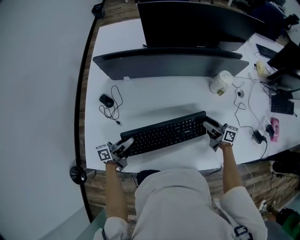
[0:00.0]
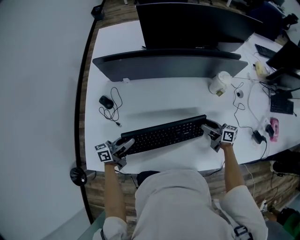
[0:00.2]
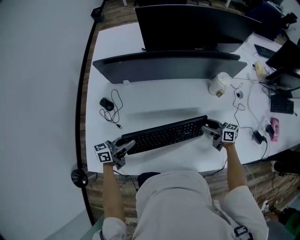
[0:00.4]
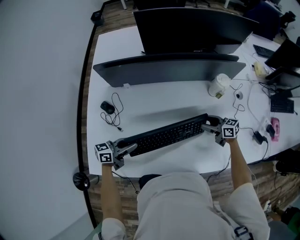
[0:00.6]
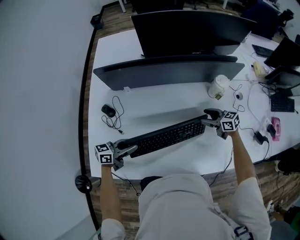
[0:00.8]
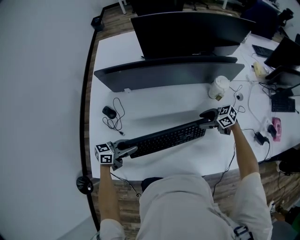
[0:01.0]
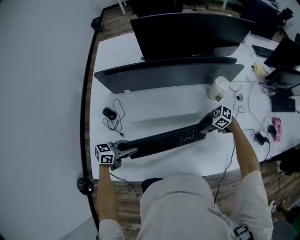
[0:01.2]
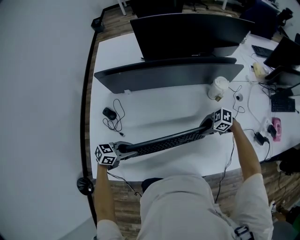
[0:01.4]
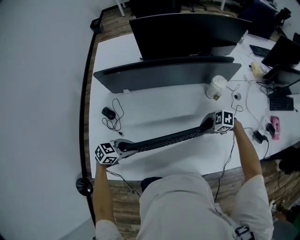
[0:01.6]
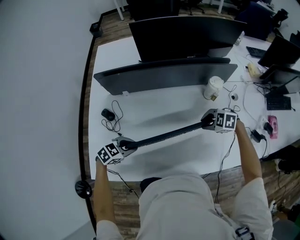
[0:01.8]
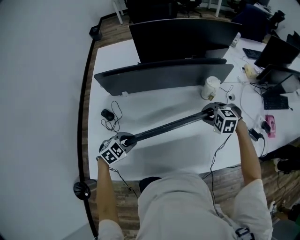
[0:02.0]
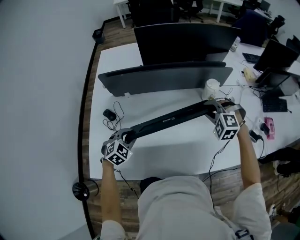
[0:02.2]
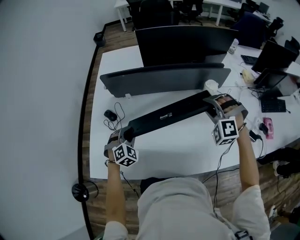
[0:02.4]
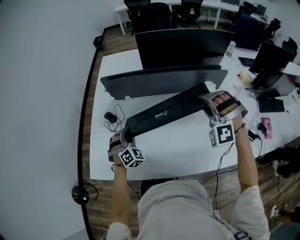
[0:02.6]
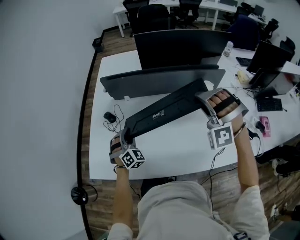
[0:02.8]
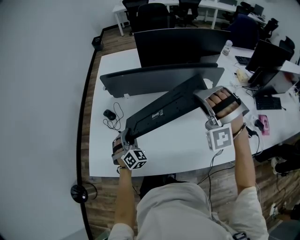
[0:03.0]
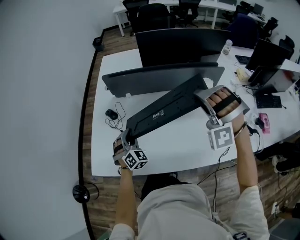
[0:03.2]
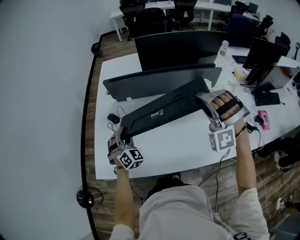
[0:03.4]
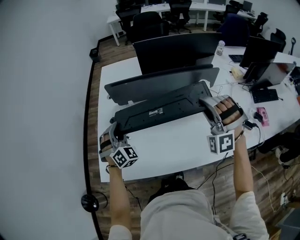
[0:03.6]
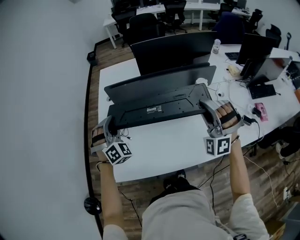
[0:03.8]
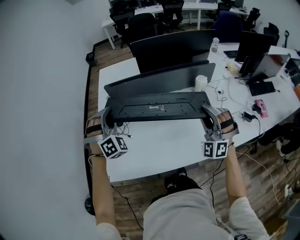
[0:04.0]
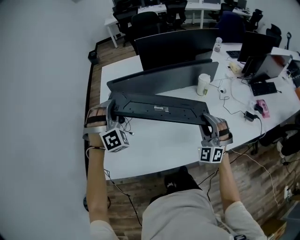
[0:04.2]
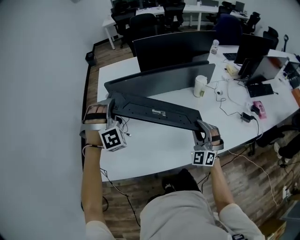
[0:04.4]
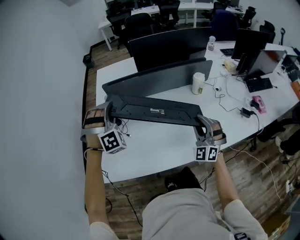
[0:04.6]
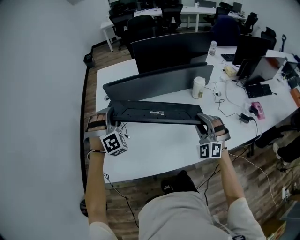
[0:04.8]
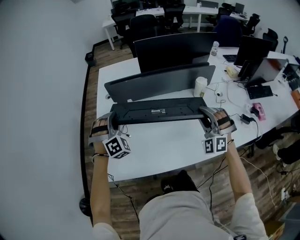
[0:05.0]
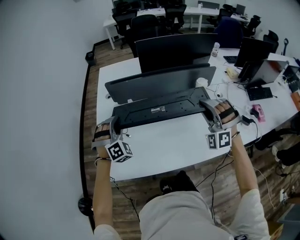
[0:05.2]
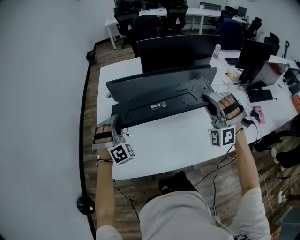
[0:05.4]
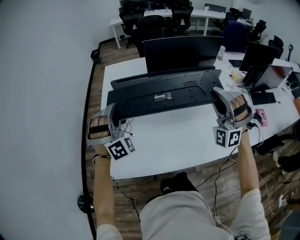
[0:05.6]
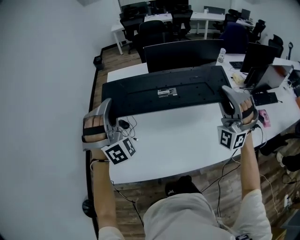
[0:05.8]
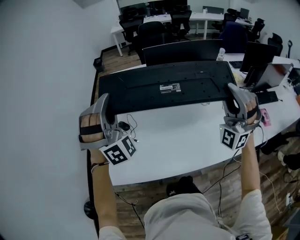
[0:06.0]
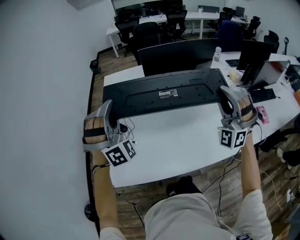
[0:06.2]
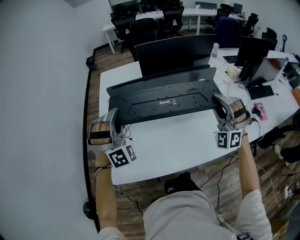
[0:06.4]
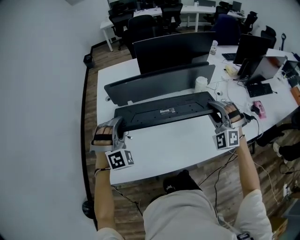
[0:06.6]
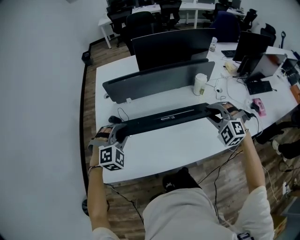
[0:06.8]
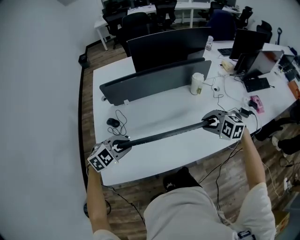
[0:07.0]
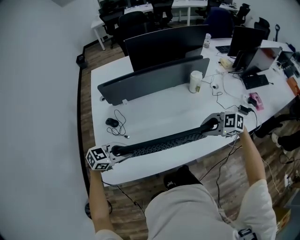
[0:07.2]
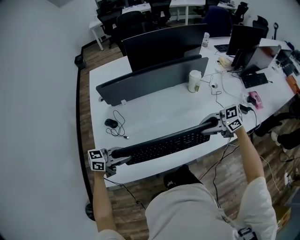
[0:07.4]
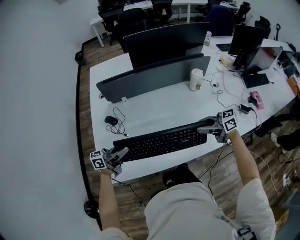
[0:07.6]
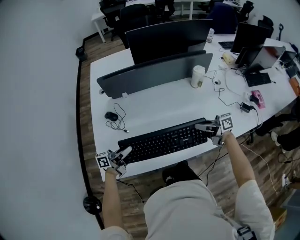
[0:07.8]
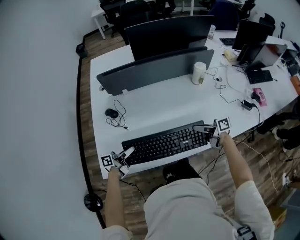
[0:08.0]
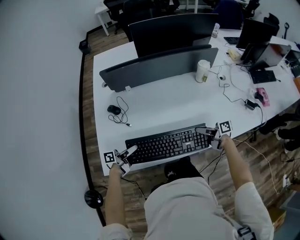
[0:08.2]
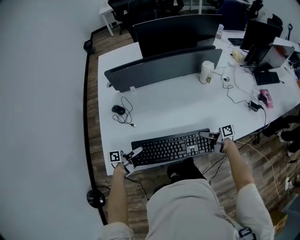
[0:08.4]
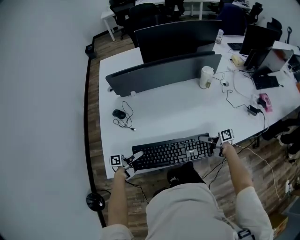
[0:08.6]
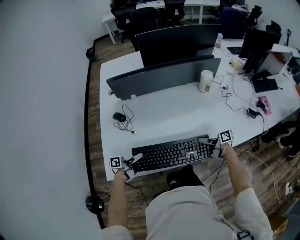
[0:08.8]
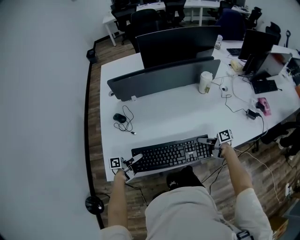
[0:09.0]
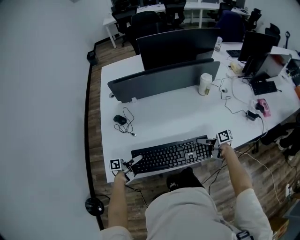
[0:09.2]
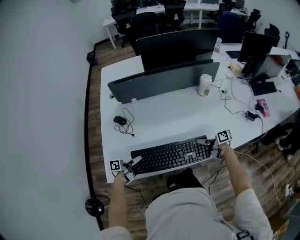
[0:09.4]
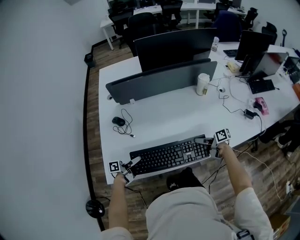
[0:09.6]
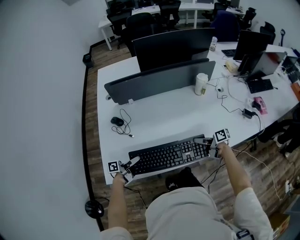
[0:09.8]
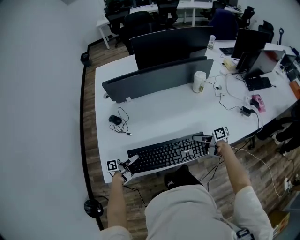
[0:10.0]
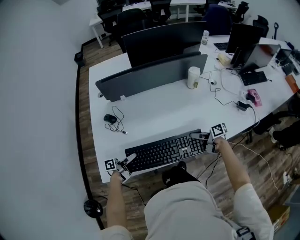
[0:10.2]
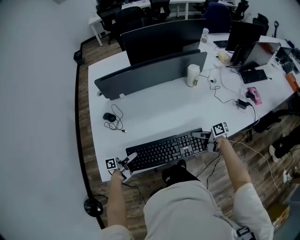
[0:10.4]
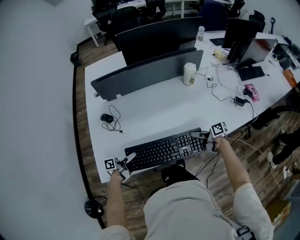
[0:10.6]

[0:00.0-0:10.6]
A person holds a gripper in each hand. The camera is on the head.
0:00.0 to 0:01.6: The right gripper tips its fingers downward by some 50 degrees, and closes up. Meanwhile the left gripper points its fingers about 30 degrees further downward.
0:01.6 to 0:03.0: The left gripper moves upward, about 10 cm, and swivels approximately 80 degrees. The right gripper goes approximately 35 cm upward, and angles its fingers upward, by roughly 30 degrees.
0:03.0 to 0:04.6: The right gripper travels backward and downward by some 15 cm, and rotates around the line of its fingers by some 50 degrees, clockwise from behind; the left gripper shifts roughly 20 cm upward, and rotates around the line of its fingers by roughly 40 degrees, clockwise from behind.
0:04.6 to 0:06.0: The left gripper shifts about 15 cm upward, and changes its angle by about 30 degrees. Meanwhile the right gripper travels upward by some 25 cm, and rotates some 40 degrees.
0:06.0 to 0:07.6: Both grippers travel together downward, about 35 cm. The right gripper tilts its fingers roughly 30 degrees downward; the left gripper rotates around the line of its fingers by about 120 degrees, counterclockwise from behind.
0:07.6 to 0:09.0: The grippers both shift downward by approximately 15 cm. The right gripper rolls clockwise, seen from behind, by roughly 40 degrees; the left gripper turns by approximately 40 degrees.
0:09.0 to 0:10.6: The grippers move only a little.

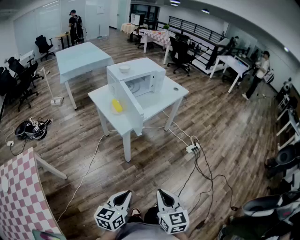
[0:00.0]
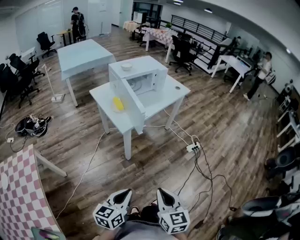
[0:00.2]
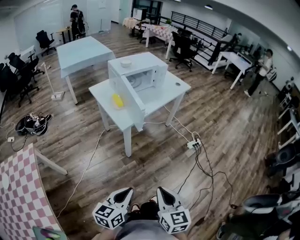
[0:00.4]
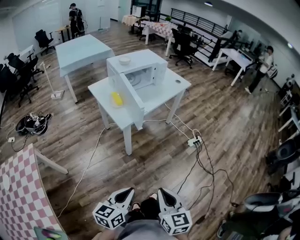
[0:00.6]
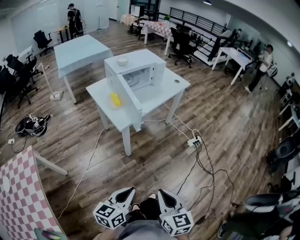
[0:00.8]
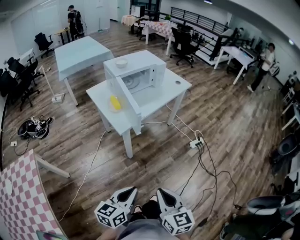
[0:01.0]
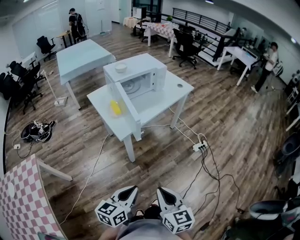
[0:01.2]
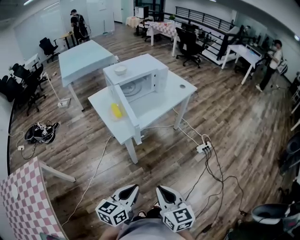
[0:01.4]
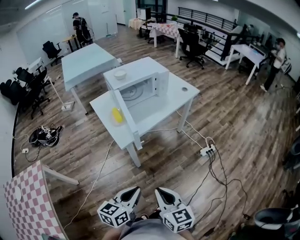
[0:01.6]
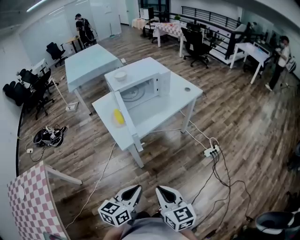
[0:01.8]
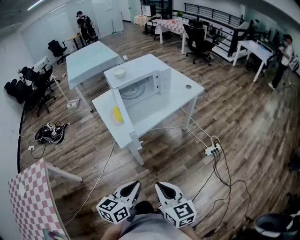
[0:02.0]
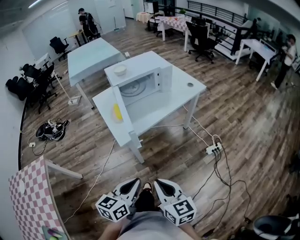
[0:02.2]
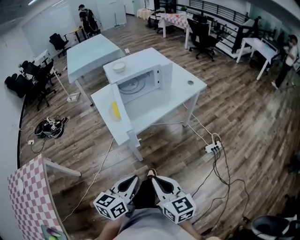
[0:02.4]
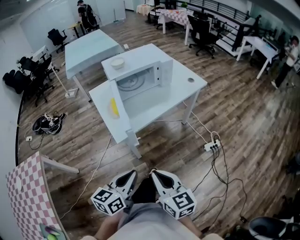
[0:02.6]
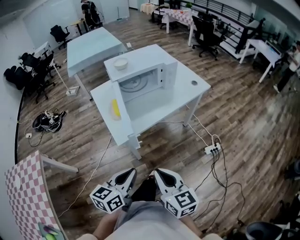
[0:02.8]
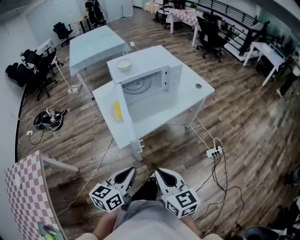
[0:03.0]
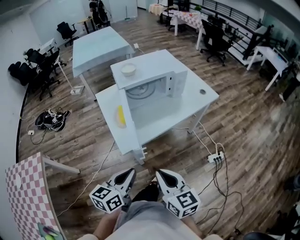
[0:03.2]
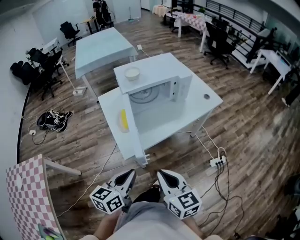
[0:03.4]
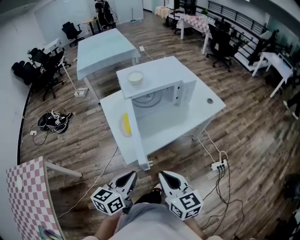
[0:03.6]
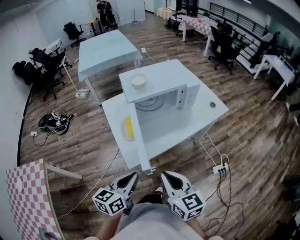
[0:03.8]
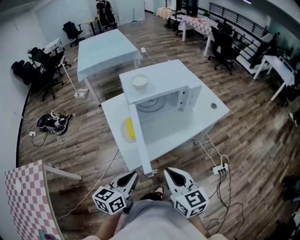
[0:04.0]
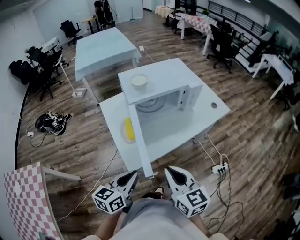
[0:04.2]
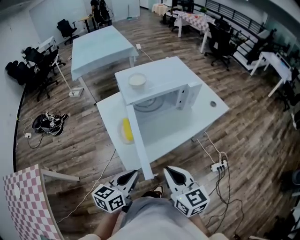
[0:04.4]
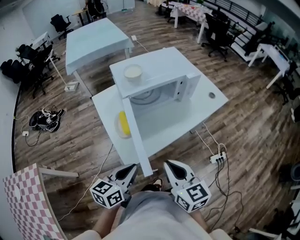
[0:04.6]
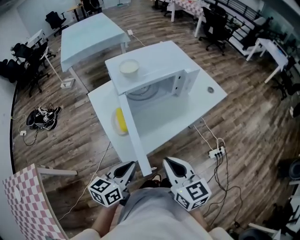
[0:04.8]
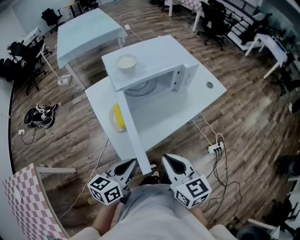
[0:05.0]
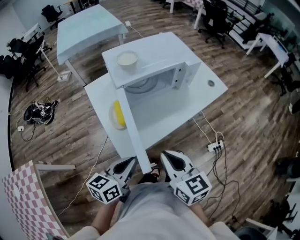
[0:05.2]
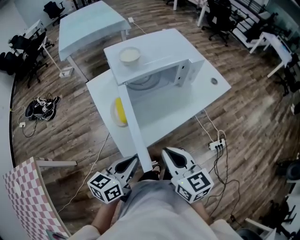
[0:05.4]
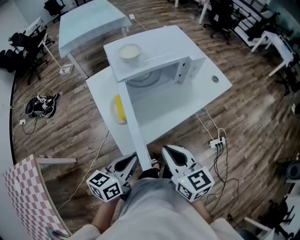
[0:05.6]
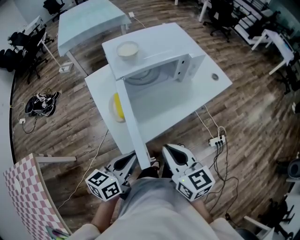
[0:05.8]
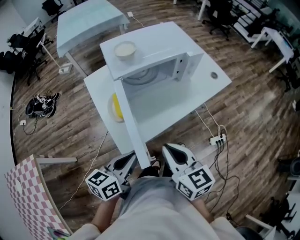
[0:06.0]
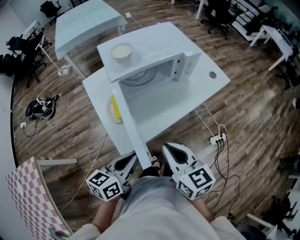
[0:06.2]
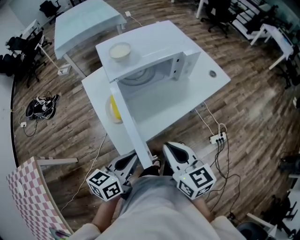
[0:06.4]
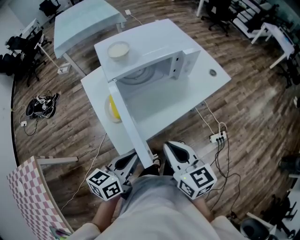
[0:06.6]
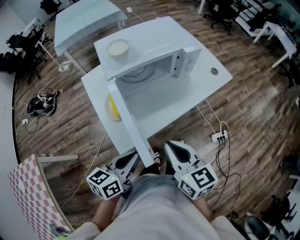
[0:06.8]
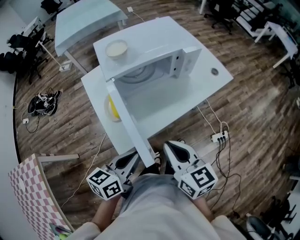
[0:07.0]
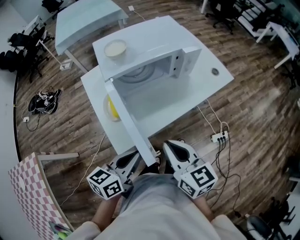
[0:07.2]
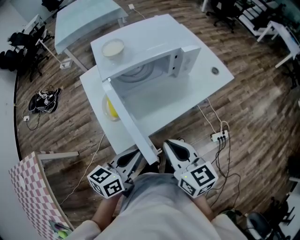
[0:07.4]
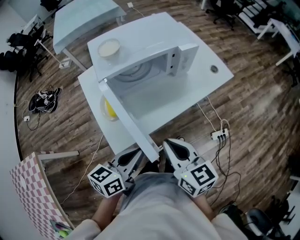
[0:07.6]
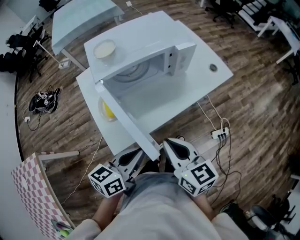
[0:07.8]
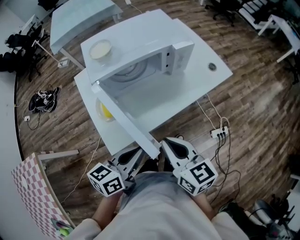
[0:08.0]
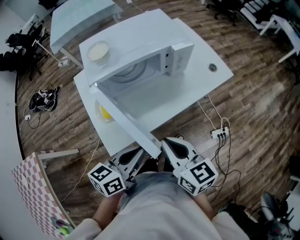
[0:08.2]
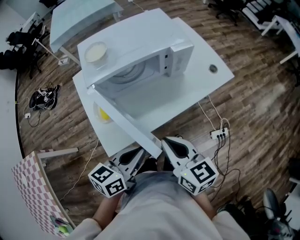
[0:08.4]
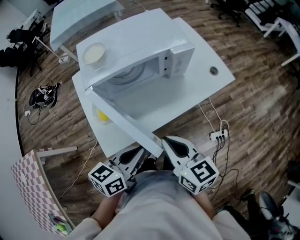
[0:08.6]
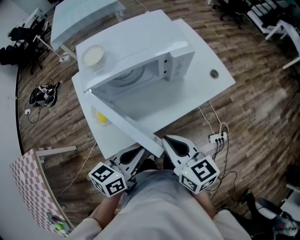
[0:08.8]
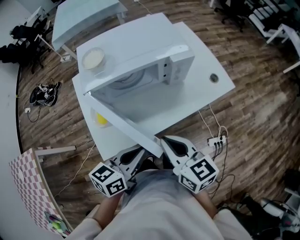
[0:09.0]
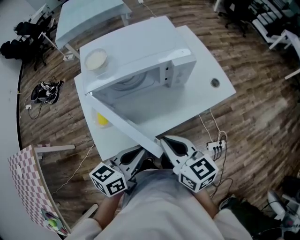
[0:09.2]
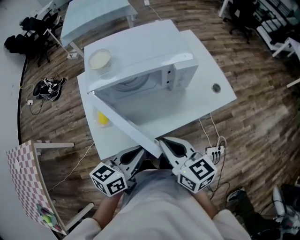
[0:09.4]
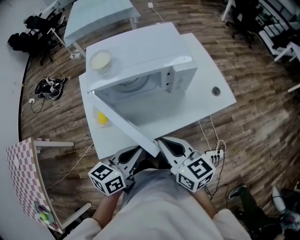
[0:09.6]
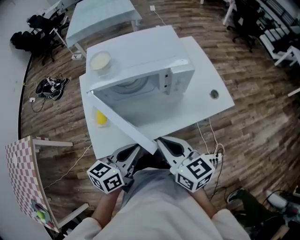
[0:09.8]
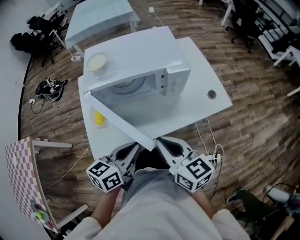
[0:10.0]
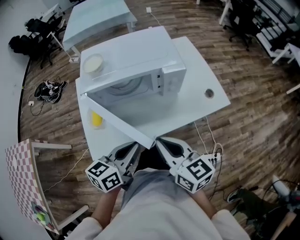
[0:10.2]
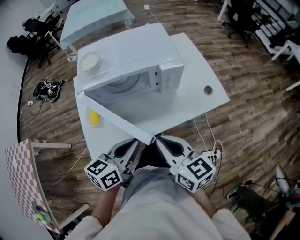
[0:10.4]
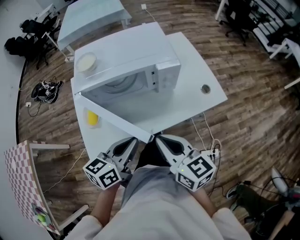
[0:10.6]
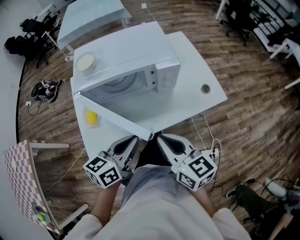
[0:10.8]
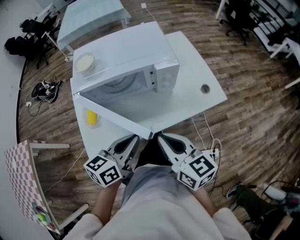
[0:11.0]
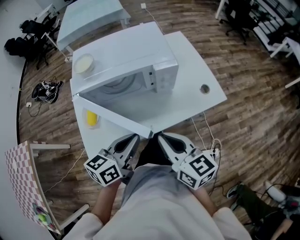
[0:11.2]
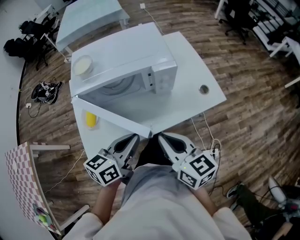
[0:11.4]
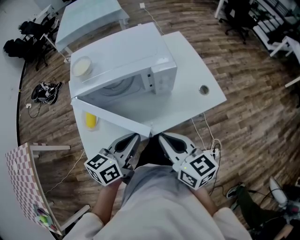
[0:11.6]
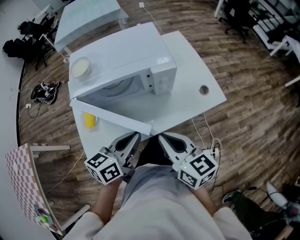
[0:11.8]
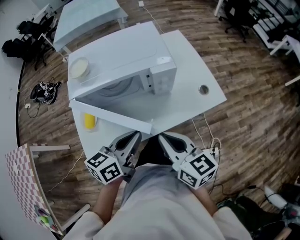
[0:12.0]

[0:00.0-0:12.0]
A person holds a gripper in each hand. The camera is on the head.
0:00.0 to 0:01.6: The left gripper travels forward and to the right by roughly 15 cm; the right gripper moves forward, some 15 cm.
0:01.6 to 0:03.0: The grippers both shift forward by about 15 cm.
0:03.0 to 0:04.4: The grippers both shift forward by about 15 cm.
0:04.4 to 0:06.0: The grippers move only a little.
0:06.0 to 0:07.6: The two grippers go roughly 5 cm to the right.
0:07.6 to 0:09.0: The left gripper goes roughly 10 cm to the right and forward. The right gripper is displaced forward and to the right by some 10 cm.
0:09.0 to 0:10.4: The right gripper shifts by roughly 5 cm; the left gripper shifts by about 5 cm.
0:10.4 to 0:12.0: The right gripper changes place by about 5 cm; the left gripper ends up approximately 5 cm from where it was.

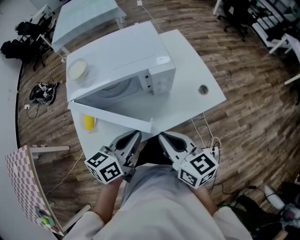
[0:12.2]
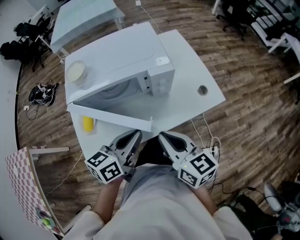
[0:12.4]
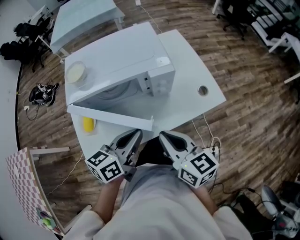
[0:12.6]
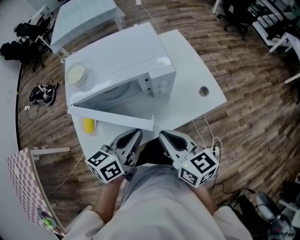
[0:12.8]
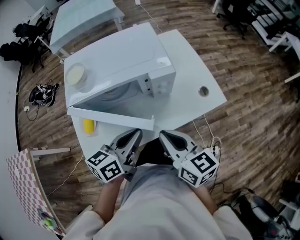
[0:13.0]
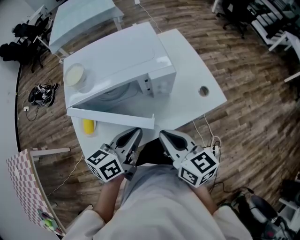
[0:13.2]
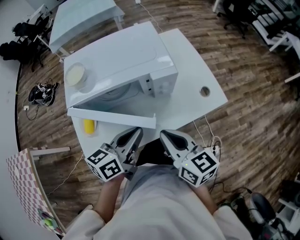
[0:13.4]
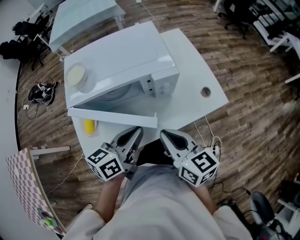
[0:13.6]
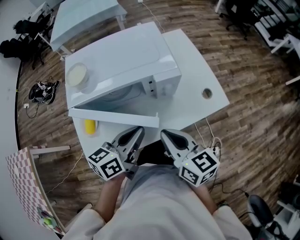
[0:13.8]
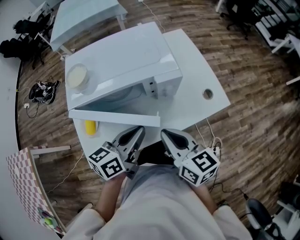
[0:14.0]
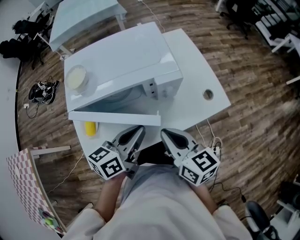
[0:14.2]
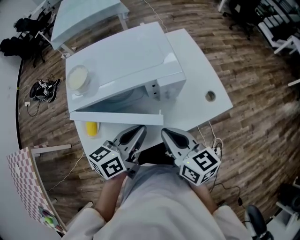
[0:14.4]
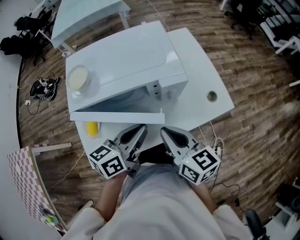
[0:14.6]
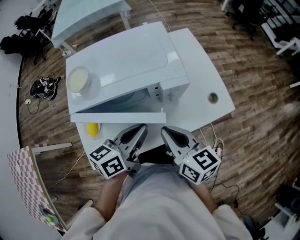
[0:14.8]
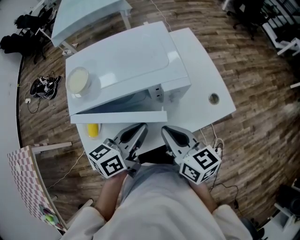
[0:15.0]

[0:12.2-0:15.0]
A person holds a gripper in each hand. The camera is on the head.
0:12.2 to 0:13.6: The grippers stay close to where they were, moving slightly.
0:13.6 to 0:15.0: Both grippers move forward, about 5 cm.
